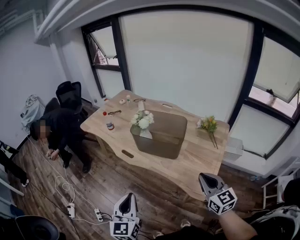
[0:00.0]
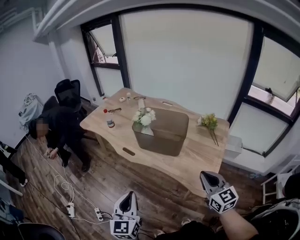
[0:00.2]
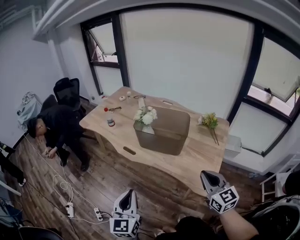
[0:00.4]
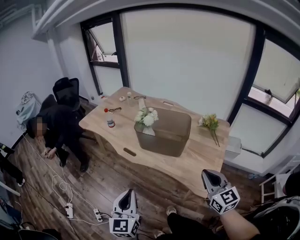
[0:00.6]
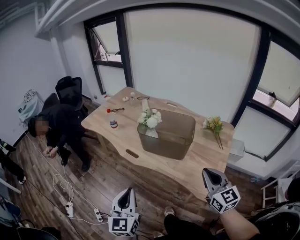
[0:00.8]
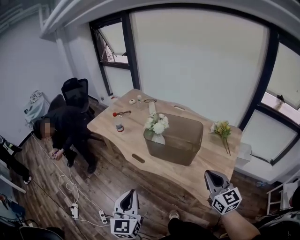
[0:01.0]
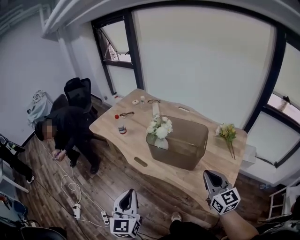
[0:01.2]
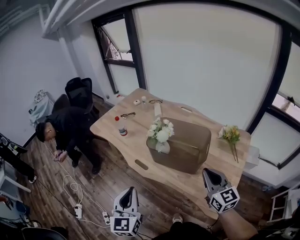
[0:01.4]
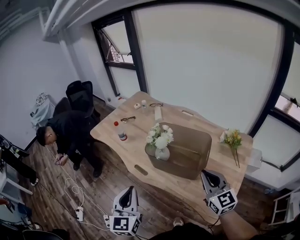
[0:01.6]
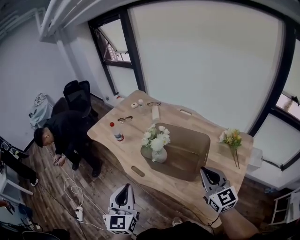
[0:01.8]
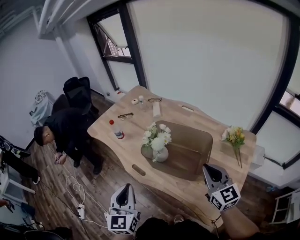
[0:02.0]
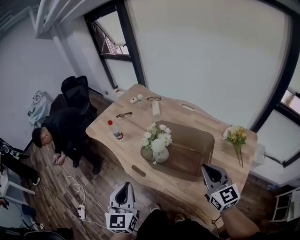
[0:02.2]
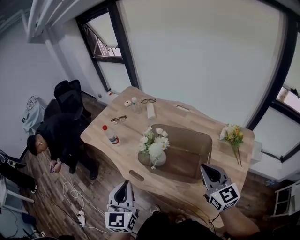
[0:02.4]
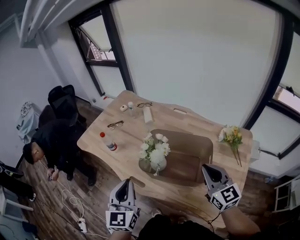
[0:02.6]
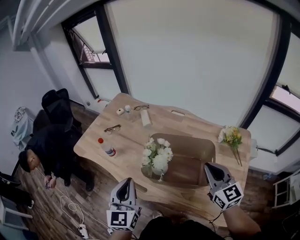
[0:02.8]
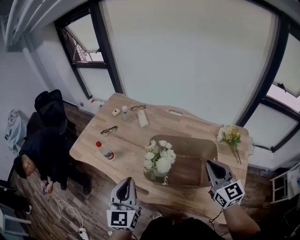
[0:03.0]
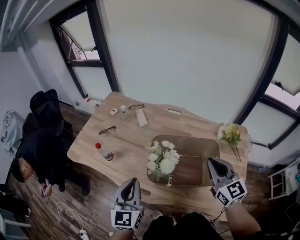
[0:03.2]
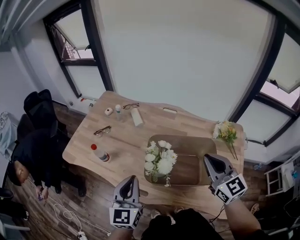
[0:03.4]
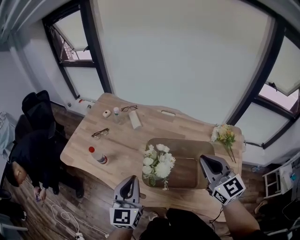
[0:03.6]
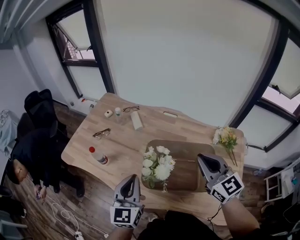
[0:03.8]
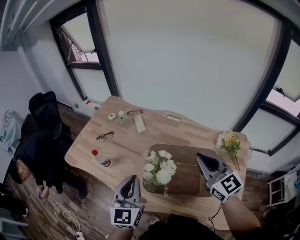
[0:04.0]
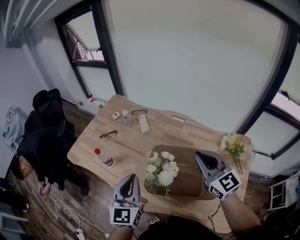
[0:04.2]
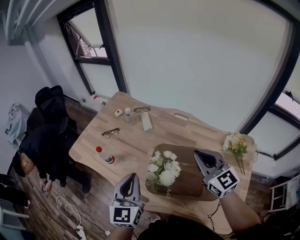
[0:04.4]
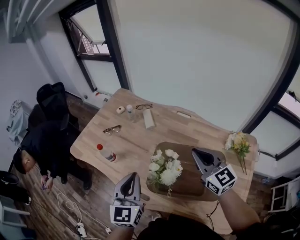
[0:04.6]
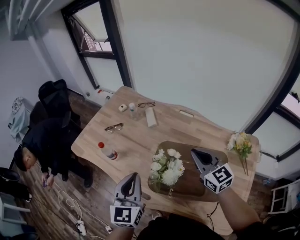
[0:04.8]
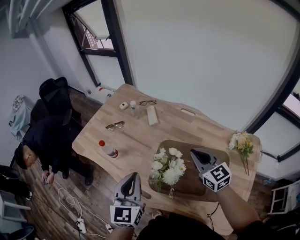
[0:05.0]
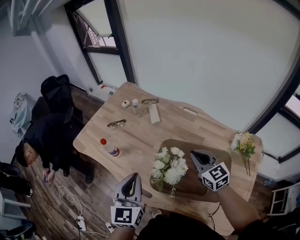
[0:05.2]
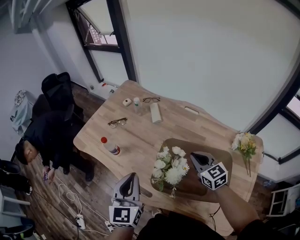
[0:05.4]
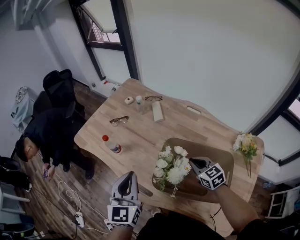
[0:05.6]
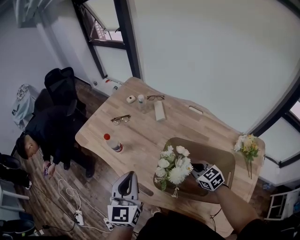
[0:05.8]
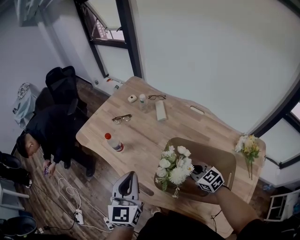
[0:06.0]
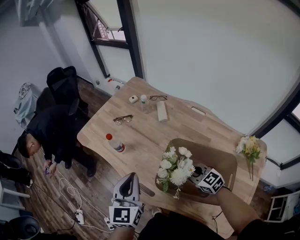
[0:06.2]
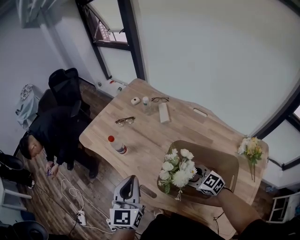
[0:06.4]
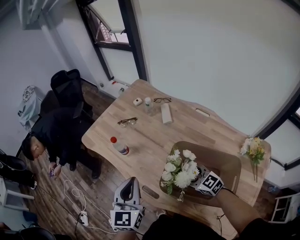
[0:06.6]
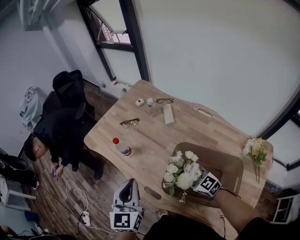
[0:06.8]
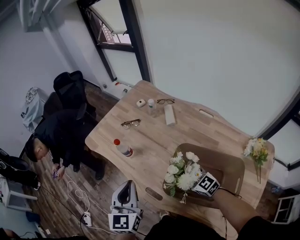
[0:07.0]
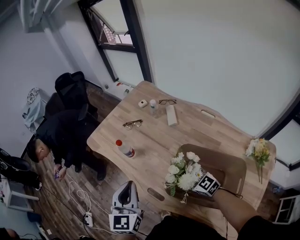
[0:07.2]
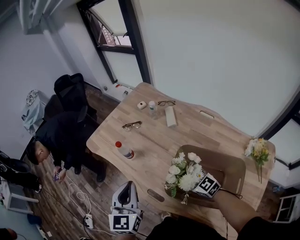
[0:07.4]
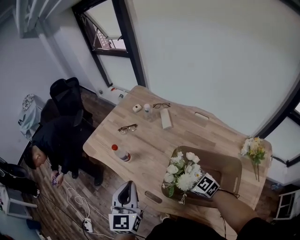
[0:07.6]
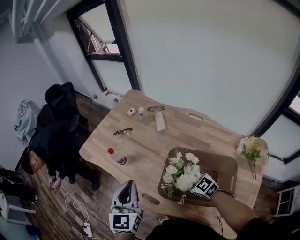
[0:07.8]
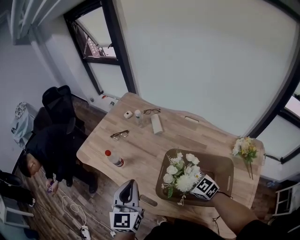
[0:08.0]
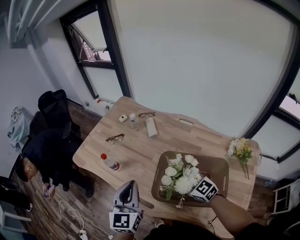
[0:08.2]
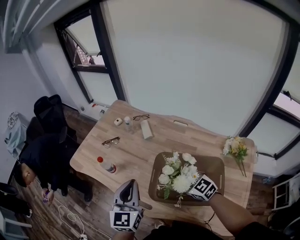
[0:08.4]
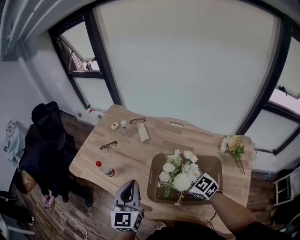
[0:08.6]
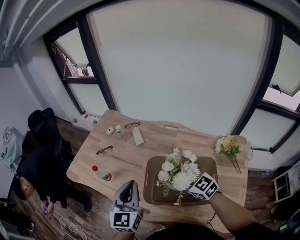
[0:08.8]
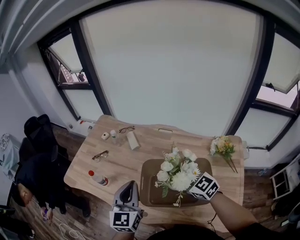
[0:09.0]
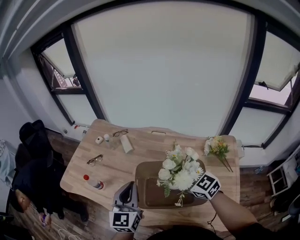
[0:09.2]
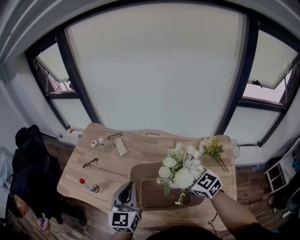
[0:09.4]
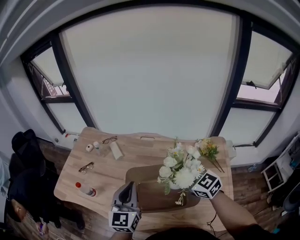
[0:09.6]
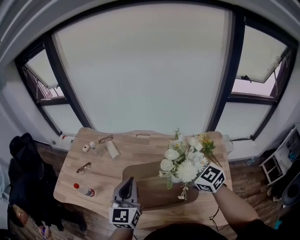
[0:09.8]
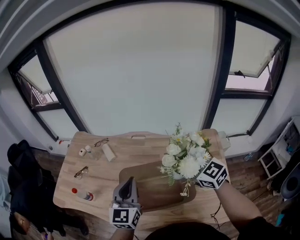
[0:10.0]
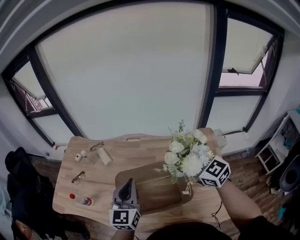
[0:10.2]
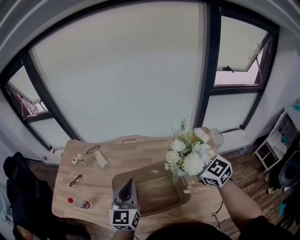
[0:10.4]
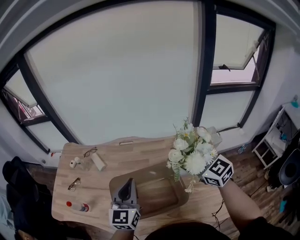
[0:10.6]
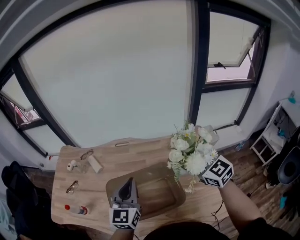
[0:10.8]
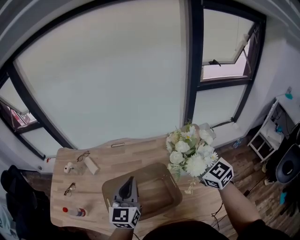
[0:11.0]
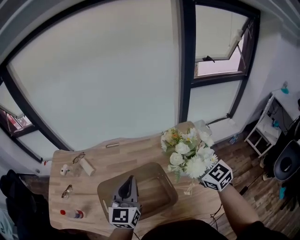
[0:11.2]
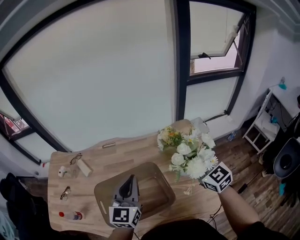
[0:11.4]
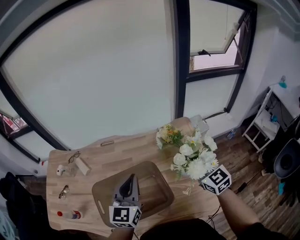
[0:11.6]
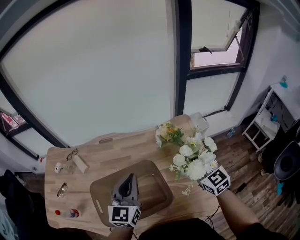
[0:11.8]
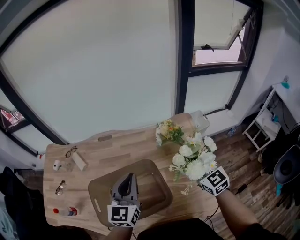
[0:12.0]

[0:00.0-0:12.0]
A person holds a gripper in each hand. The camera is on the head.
0:00.0 to 0:01.6: Both grippers travel together forward, about 20 cm.
0:01.6 to 0:03.0: The left gripper heads forward, covering roughly 20 cm. The right gripper moves forward, about 15 cm.
0:03.0 to 0:04.4: The left gripper shifts about 5 cm forward. The right gripper goes about 15 cm forward and to the left.
0:04.4 to 0:06.0: The right gripper is displaced downward by roughly 25 cm, and turns by roughly 40 degrees. The left gripper changes place by about 5 cm.
0:06.0 to 0:07.6: The right gripper is displaced to the left by some 5 cm, and opens its fingers.
0:07.6 to 0:09.0: The left gripper travels to the right by approximately 10 cm, and rotates roughly 20 degrees. The right gripper shifts approximately 15 cm upward and to the right.
0:09.0 to 0:10.4: The right gripper heads to the right and upward, covering approximately 20 cm, and rotates roughly 20 degrees, while the left gripper travels to the right by about 15 cm.
0:10.4 to 0:12.0: The right gripper shifts some 20 cm to the right and downward, and changes its angle by approximately 20 degrees, while the left gripper travels to the right by some 10 cm.

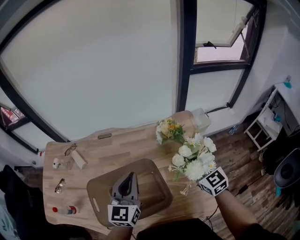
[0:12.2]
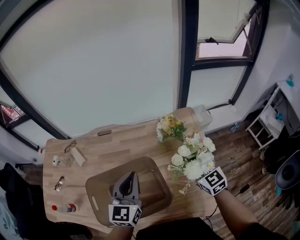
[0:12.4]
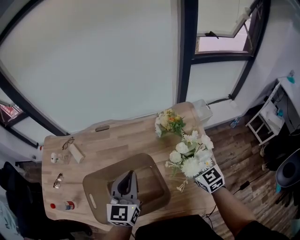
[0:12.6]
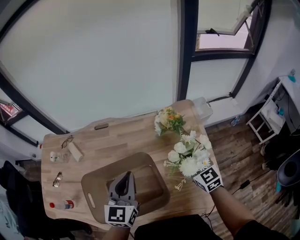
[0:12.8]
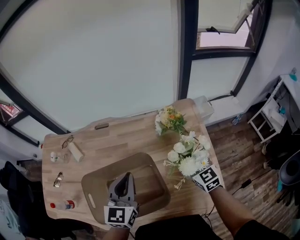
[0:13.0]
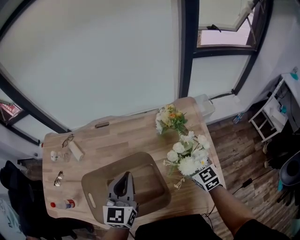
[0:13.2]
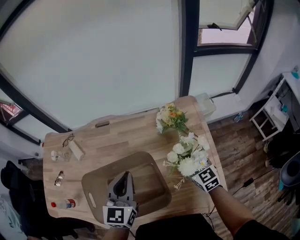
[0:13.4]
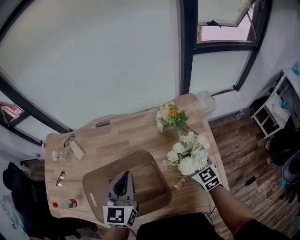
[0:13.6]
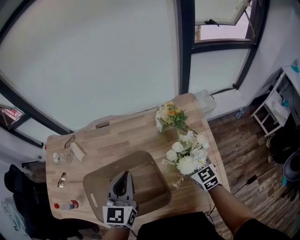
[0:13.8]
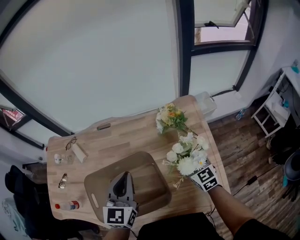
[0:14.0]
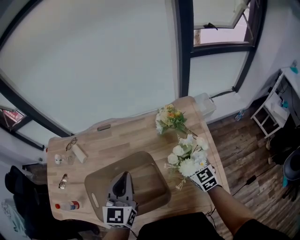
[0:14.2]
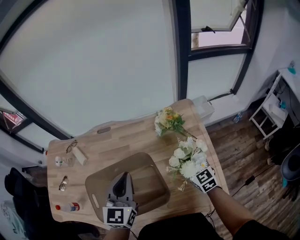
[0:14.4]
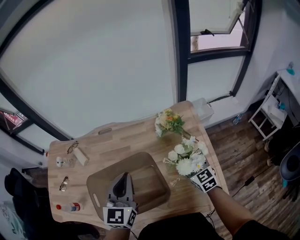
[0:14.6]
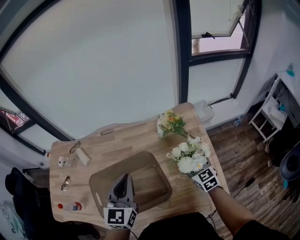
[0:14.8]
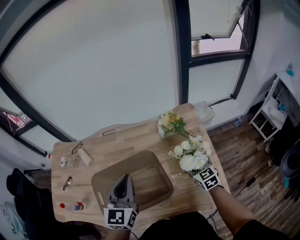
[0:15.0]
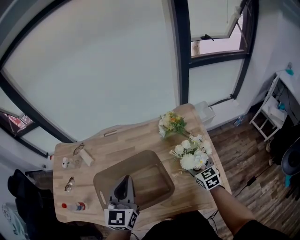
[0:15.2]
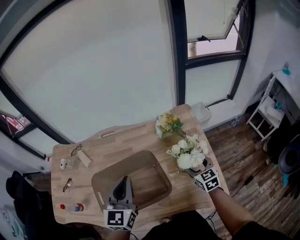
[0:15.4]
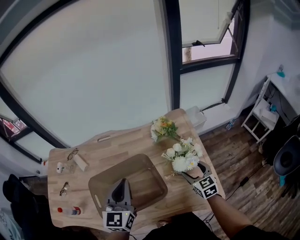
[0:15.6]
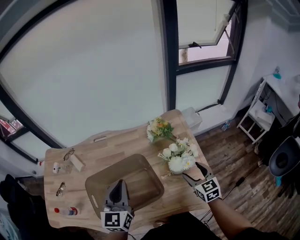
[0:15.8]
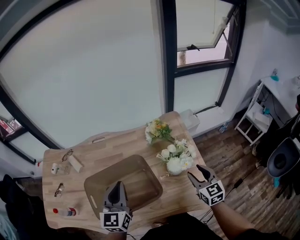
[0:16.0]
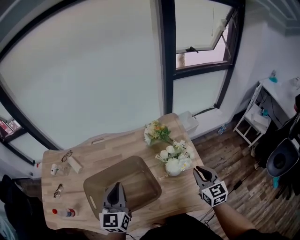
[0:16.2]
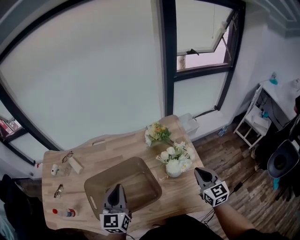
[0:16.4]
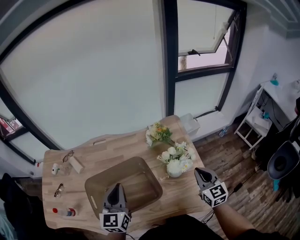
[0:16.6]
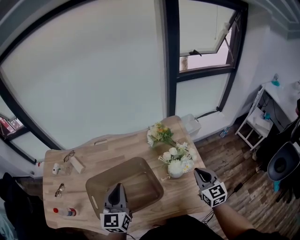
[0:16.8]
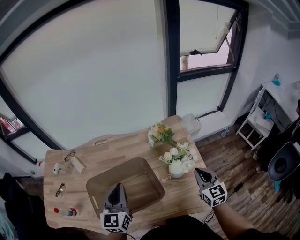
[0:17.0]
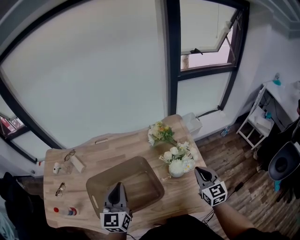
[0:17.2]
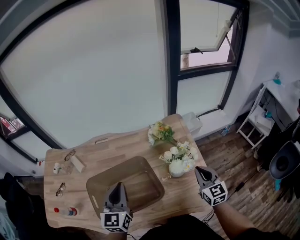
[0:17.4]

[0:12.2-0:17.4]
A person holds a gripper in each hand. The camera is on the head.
0:12.2 to 0:14.0: The right gripper is displaced downward by about 10 cm.
0:14.0 to 0:15.6: The right gripper travels backward by roughly 10 cm. The left gripper ends up some 5 cm from where it was.
0:15.6 to 0:17.4: The right gripper shifts roughly 10 cm upward, and closes its fingers.

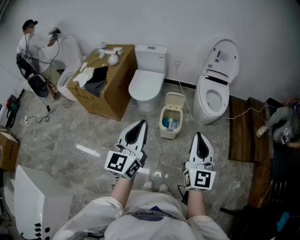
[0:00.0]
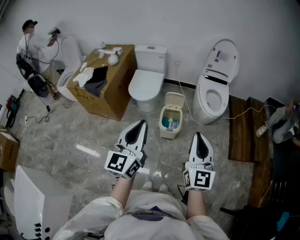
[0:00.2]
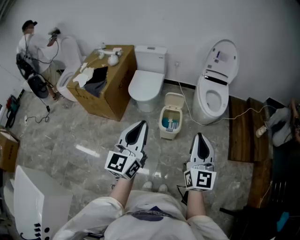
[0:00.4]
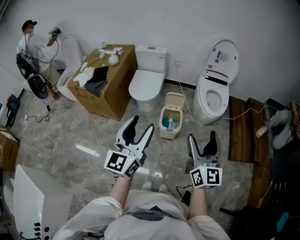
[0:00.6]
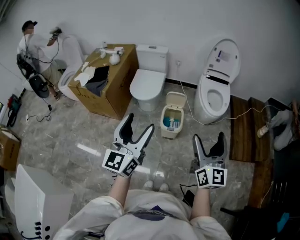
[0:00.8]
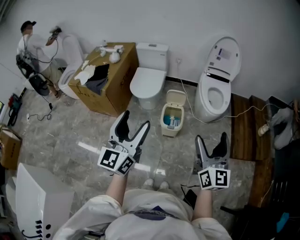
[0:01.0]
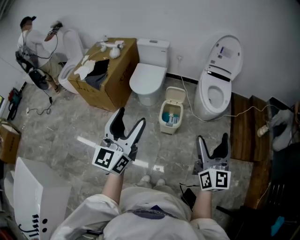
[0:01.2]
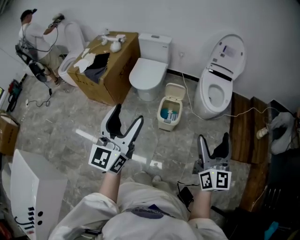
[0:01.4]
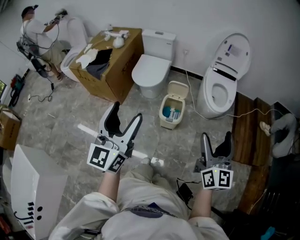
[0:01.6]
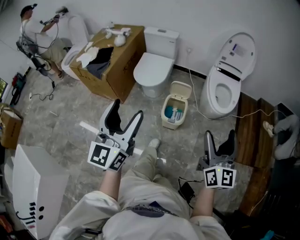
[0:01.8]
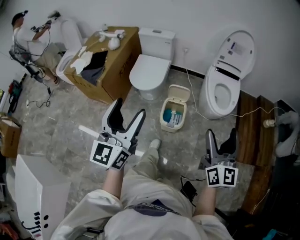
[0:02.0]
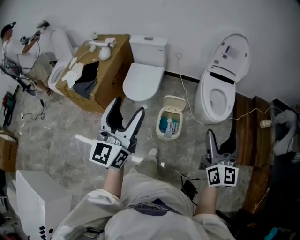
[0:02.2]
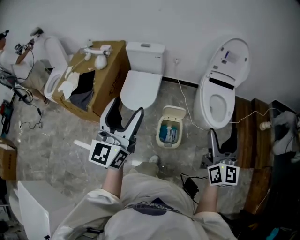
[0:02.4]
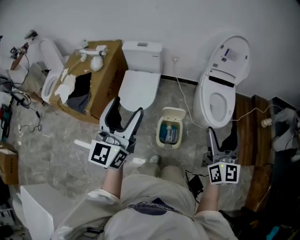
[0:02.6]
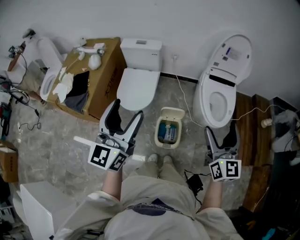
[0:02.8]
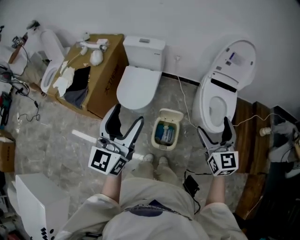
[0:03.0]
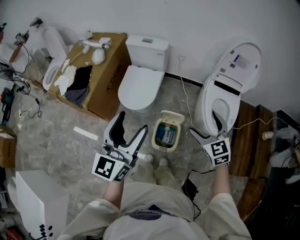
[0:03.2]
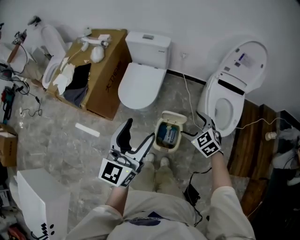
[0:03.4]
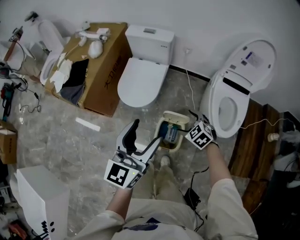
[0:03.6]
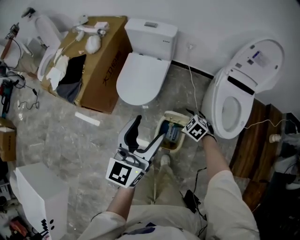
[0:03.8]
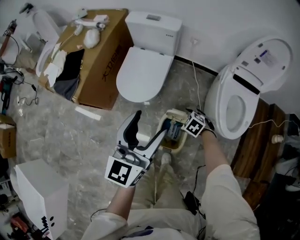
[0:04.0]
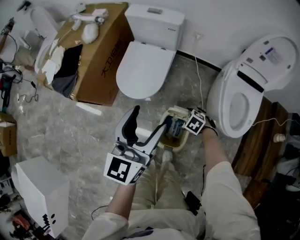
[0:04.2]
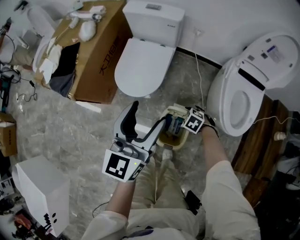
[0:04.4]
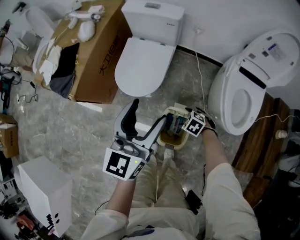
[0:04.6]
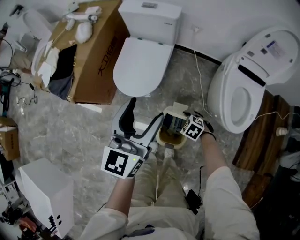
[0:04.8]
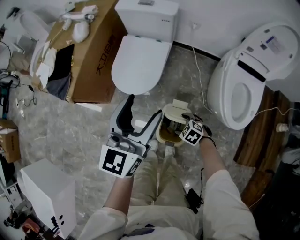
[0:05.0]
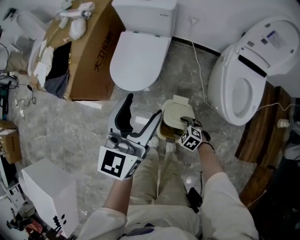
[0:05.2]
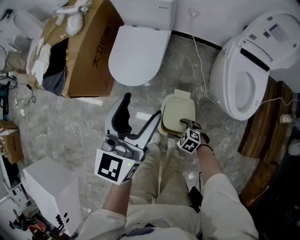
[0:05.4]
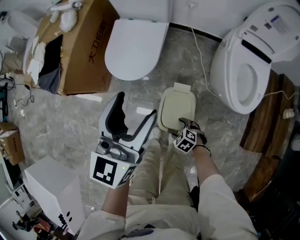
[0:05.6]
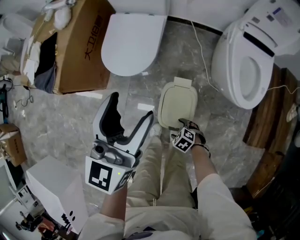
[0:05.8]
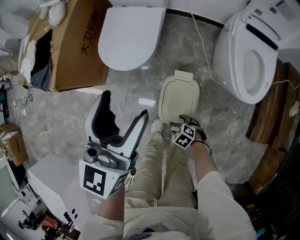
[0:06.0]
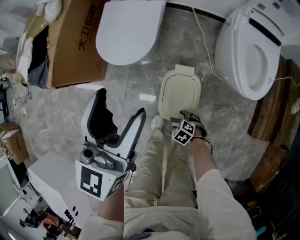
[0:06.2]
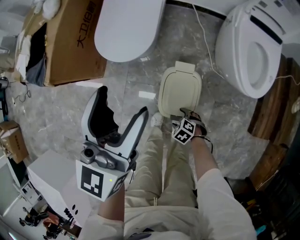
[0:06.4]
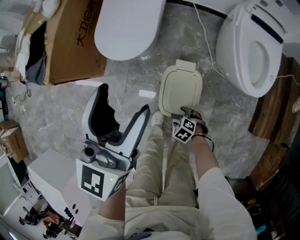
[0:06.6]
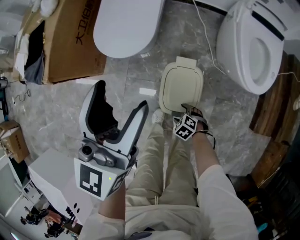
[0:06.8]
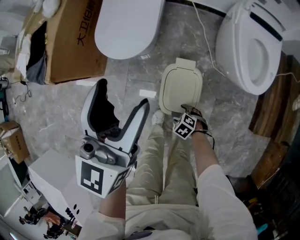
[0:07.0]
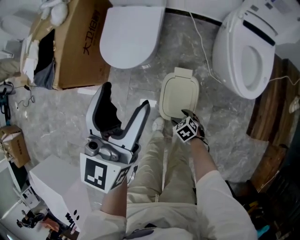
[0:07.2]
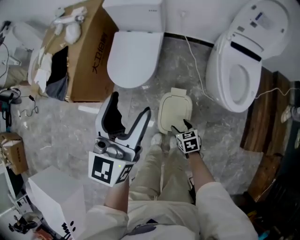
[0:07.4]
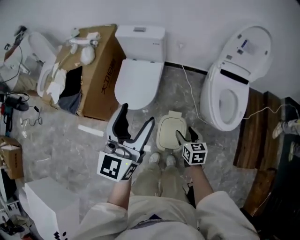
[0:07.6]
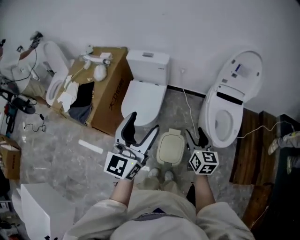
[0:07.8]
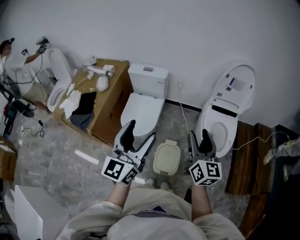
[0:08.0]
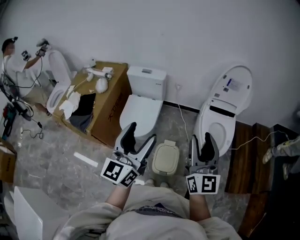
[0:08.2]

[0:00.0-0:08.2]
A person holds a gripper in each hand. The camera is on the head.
0:00.0 to 0:01.6: The right gripper heads to the right, covering roughly 10 cm, and opens up; the left gripper opens its fingers.
0:01.6 to 0:03.2: Both grippers travel together forward, some 35 cm. The right gripper tips its fingers downward by about 30 degrees.
0:03.2 to 0:05.0: The right gripper shifts some 40 cm downward, and tips its fingers downward by approximately 40 degrees; the left gripper travels downward by about 20 cm.
0:05.0 to 0:06.6: The right gripper moves downward, backward and to the left, approximately 25 cm; the left gripper travels downward by some 5 cm.
0:06.6 to 0:08.2: The right gripper heads upward, covering about 70 cm, angles its fingers upward, by approximately 90 degrees, and closes. Meanwhile the left gripper goes some 30 cm upward.
